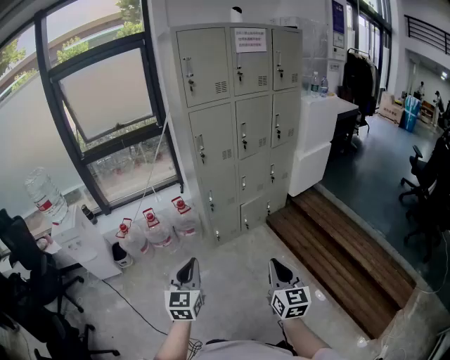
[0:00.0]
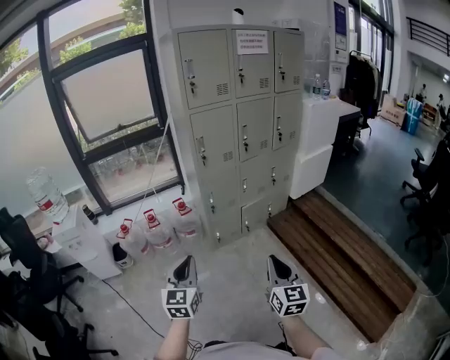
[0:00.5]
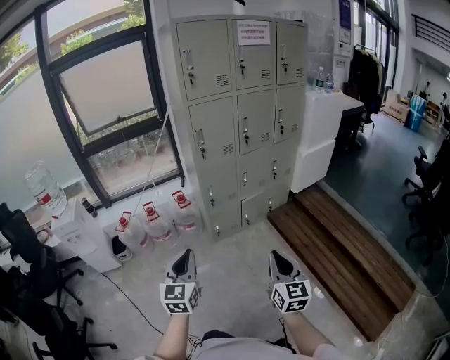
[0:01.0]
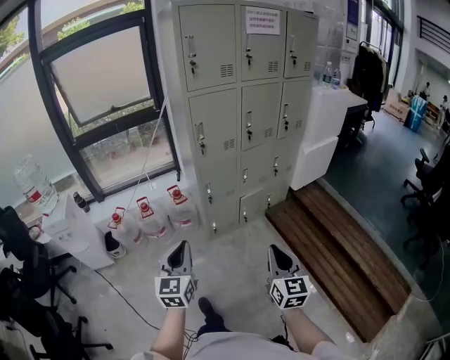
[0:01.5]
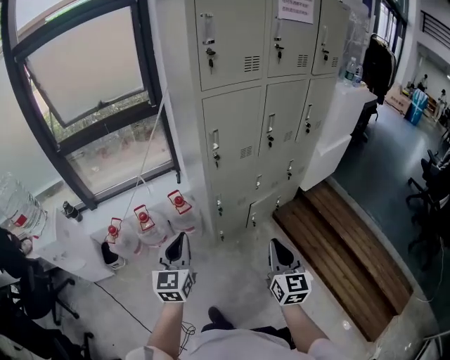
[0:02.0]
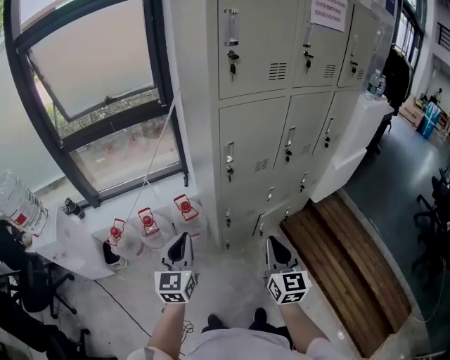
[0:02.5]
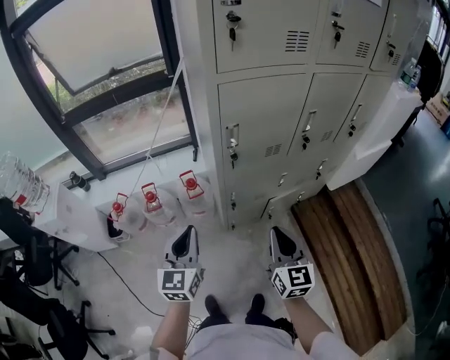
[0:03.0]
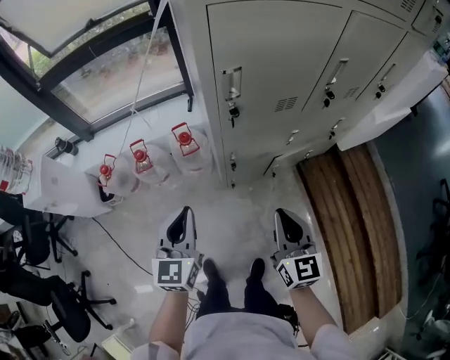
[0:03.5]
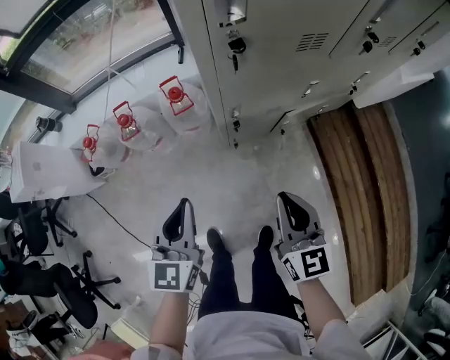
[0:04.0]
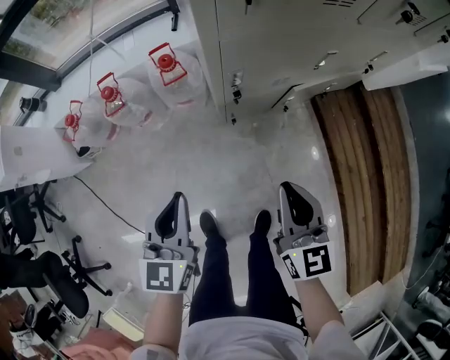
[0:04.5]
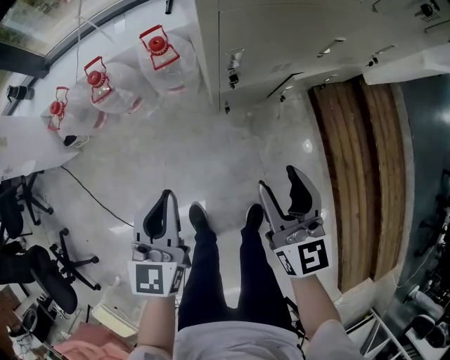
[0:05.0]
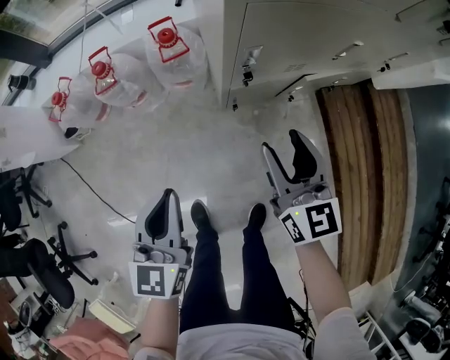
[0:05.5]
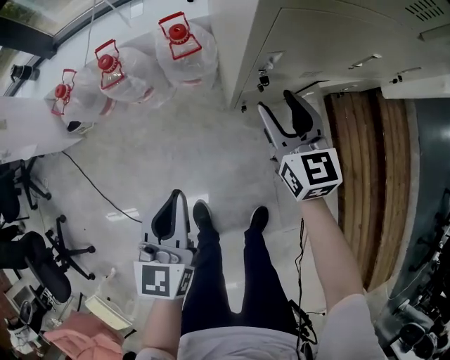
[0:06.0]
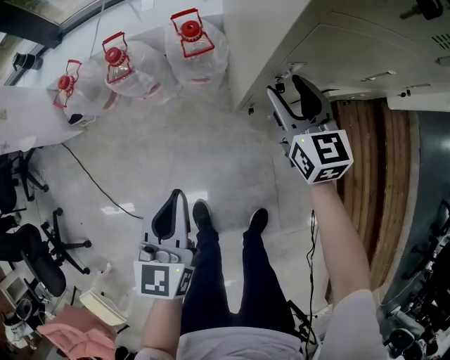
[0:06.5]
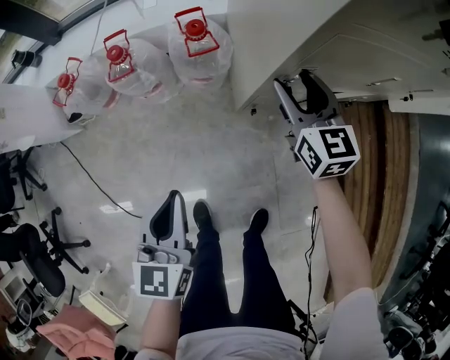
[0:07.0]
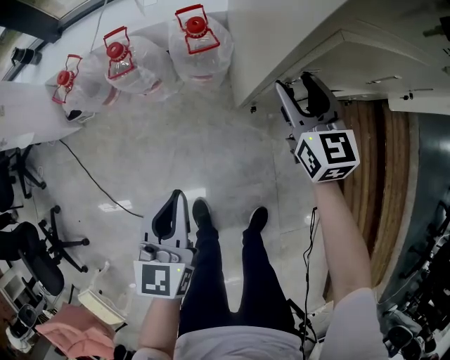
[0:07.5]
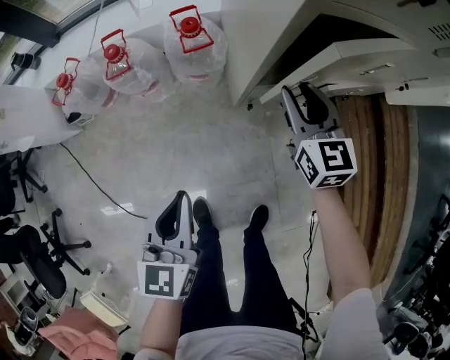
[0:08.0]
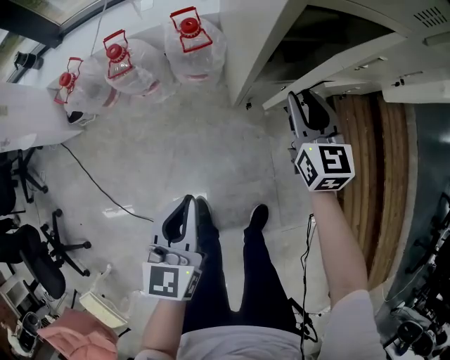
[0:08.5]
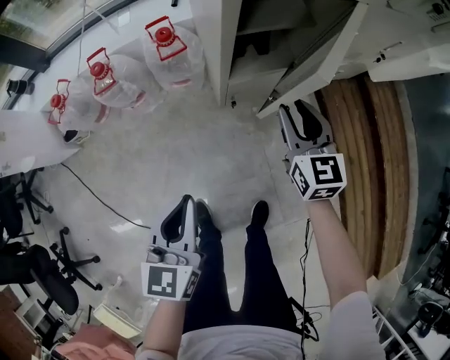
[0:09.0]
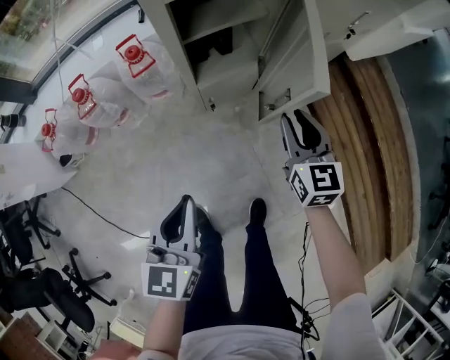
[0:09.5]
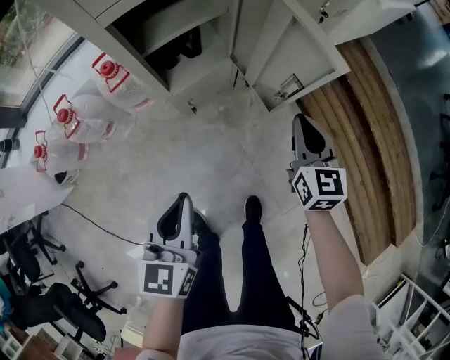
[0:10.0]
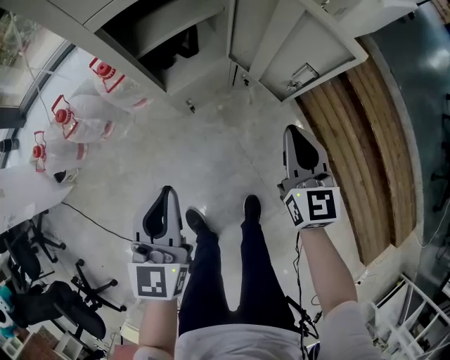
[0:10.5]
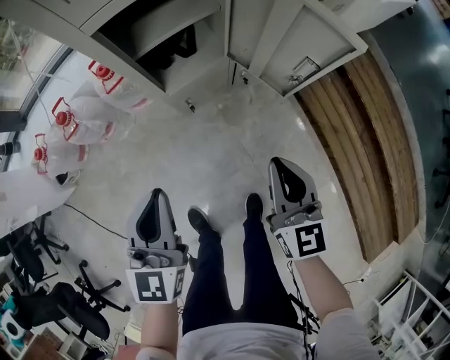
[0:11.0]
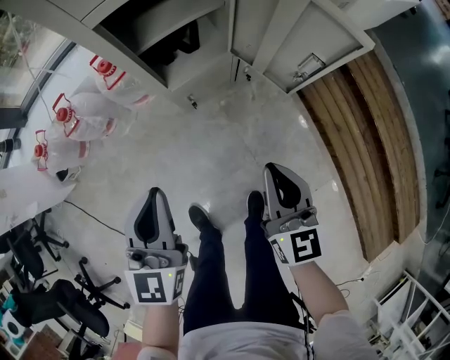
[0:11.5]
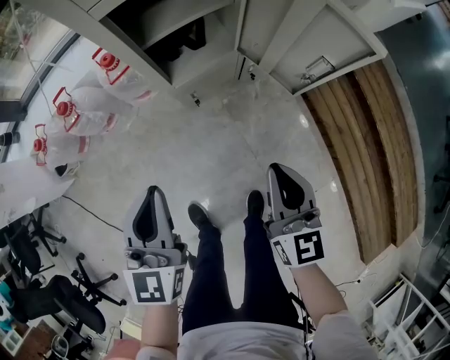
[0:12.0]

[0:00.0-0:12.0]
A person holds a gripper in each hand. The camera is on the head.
0:00.0 to 0:02.0: Both grippers move forward, about 30 cm.
0:02.0 to 0:04.0: Both grippers travel together downward and forward, about 30 cm. The right gripper turns by about 20 degrees.
0:04.0 to 0:06.0: The right gripper moves forward, downward and to the left, roughly 25 cm, and opens up; the left gripper travels downward by roughly 15 cm.
0:08.0 to 0:10.0: The left gripper heads to the right, covering approximately 20 cm, and turns by roughly 20 degrees, while the right gripper heads to the right and backward, covering about 30 cm, rotates roughly 30 degrees, and closes.
0:10.0 to 0:12.0: The right gripper moves backward and to the left, roughly 15 cm; the left gripper ends up some 5 cm from where it was.

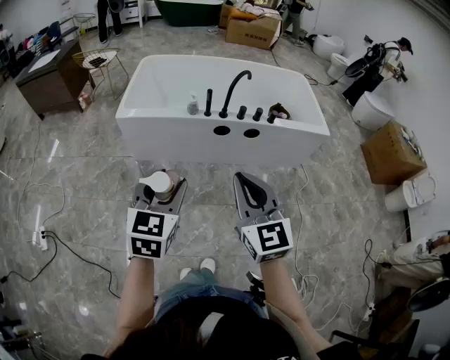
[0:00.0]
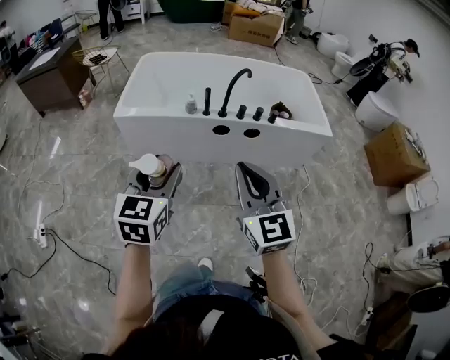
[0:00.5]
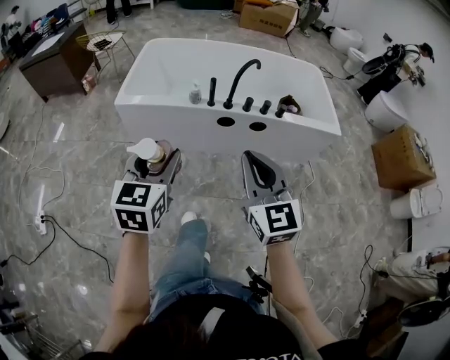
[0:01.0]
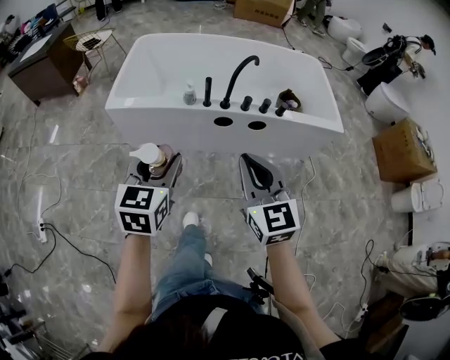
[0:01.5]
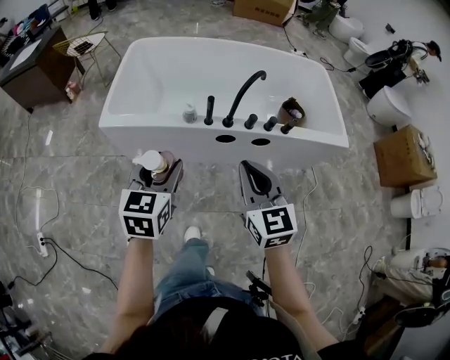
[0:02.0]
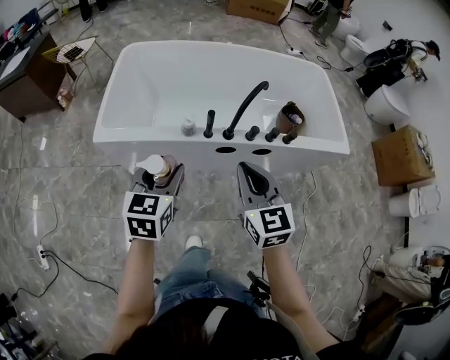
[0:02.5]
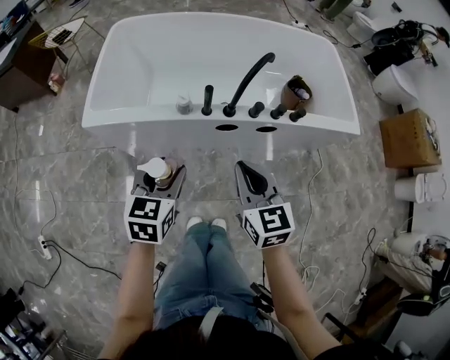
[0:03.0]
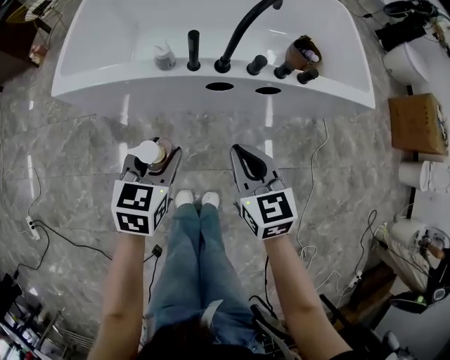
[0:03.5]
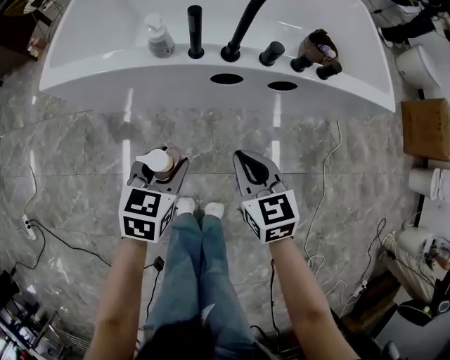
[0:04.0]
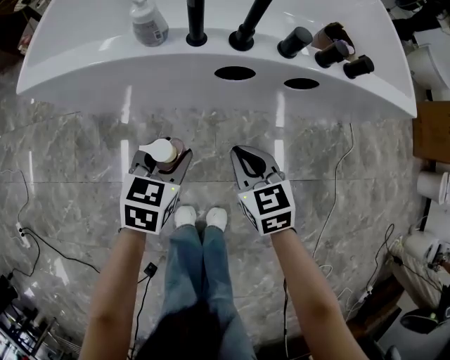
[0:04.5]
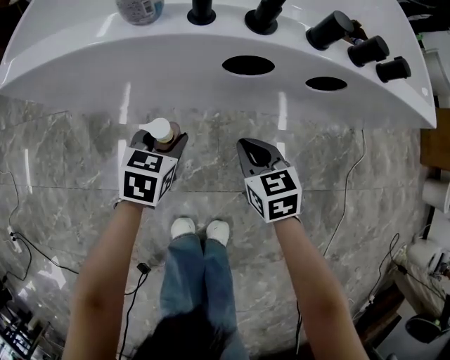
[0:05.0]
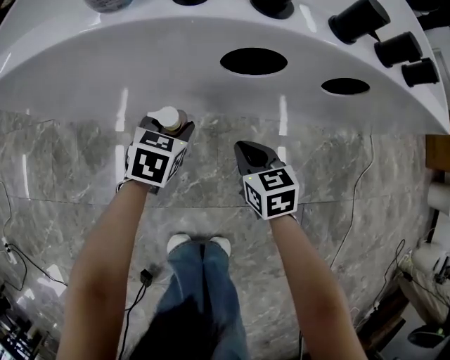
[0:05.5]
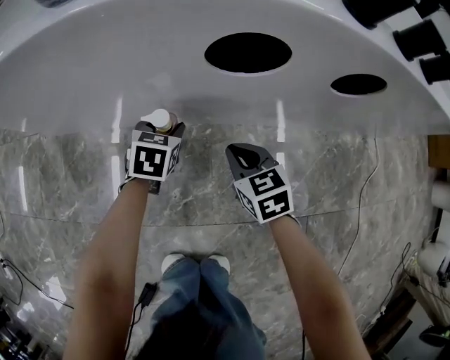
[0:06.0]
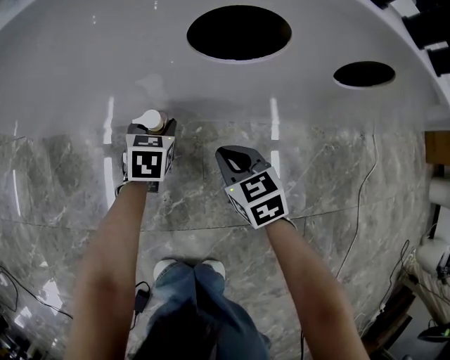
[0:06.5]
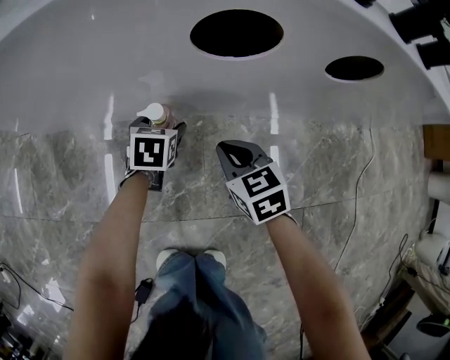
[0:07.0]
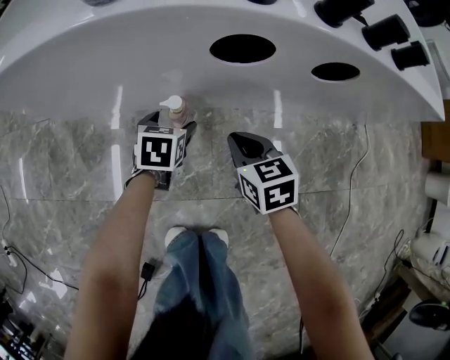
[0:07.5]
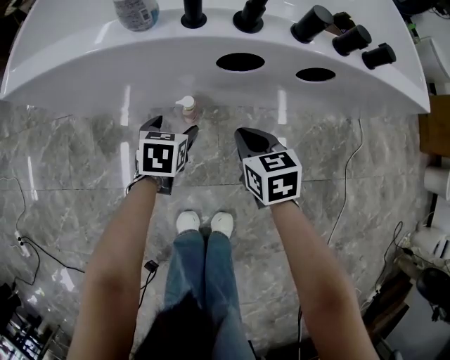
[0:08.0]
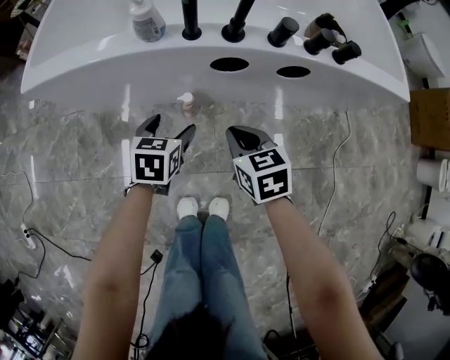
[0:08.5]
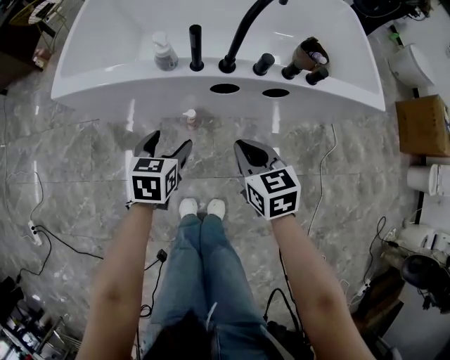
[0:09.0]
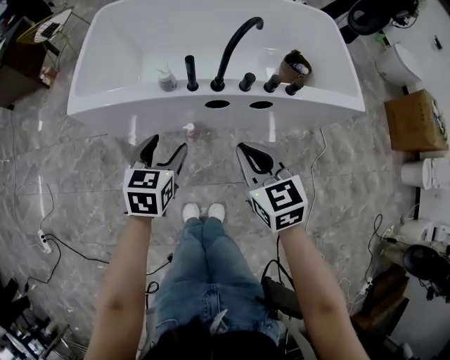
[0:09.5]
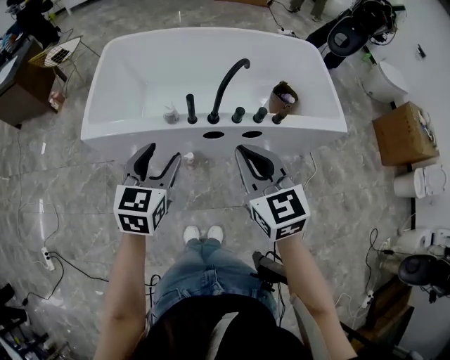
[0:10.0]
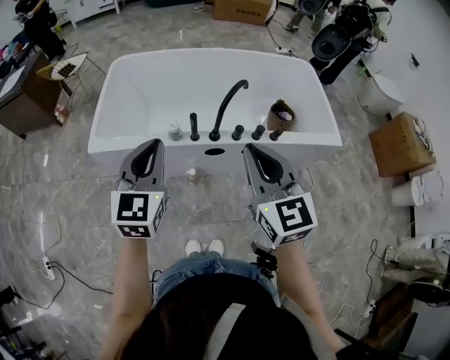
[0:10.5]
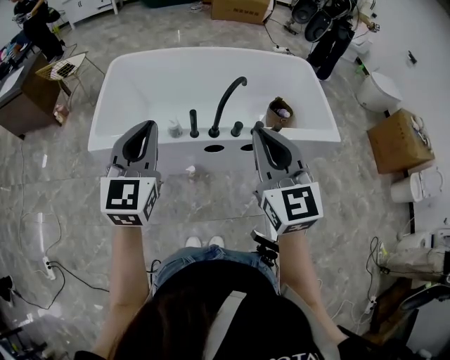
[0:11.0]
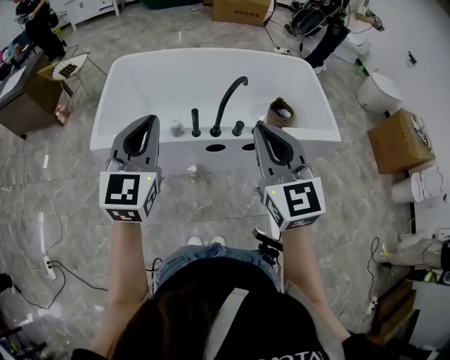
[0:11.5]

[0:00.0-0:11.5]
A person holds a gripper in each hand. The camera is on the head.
0:00.0 to 0:02.0: Both grippers travel together forward, roughly 30 cm.
0:02.0 to 0:04.0: Both grippers travel together downward, about 35 cm. The left gripper turns by some 20 degrees, while the right gripper rotates about 20 degrees.
0:04.0 to 0:06.0: The right gripper heads downward, covering approximately 40 cm, while the left gripper goes roughly 50 cm downward and forward.
0:06.0 to 0:07.5: The left gripper heads upward and backward, covering roughly 10 cm, and opens up, while the right gripper travels upward by about 10 cm.
0:07.5 to 0:09.5: Both grippers move upward, about 50 cm.
0:09.5 to 0:11.5: The two grippers go some 30 cm upward. The right gripper rotates roughly 30 degrees; the left gripper angles its fingers upward, by some 30 degrees, and closes.

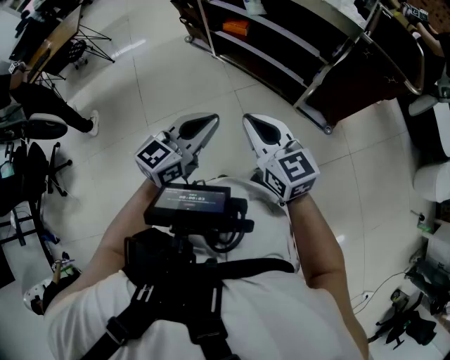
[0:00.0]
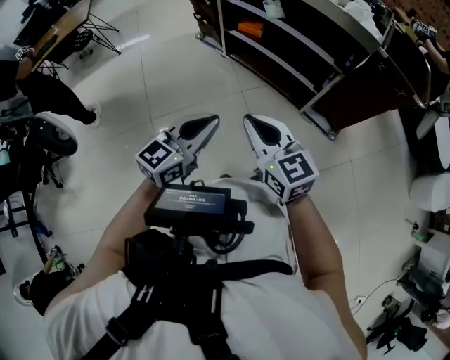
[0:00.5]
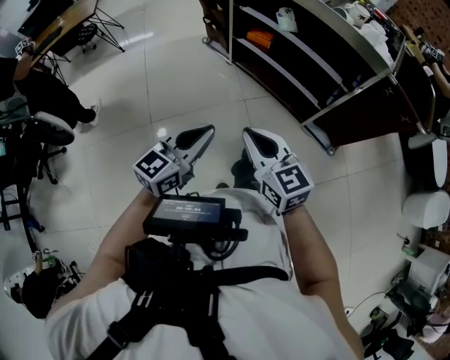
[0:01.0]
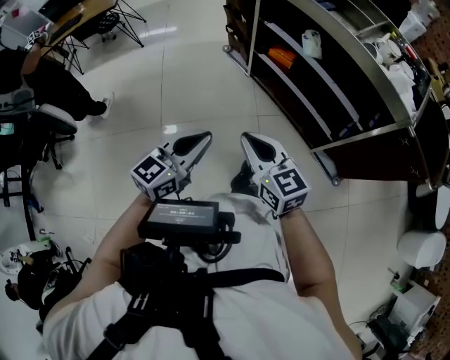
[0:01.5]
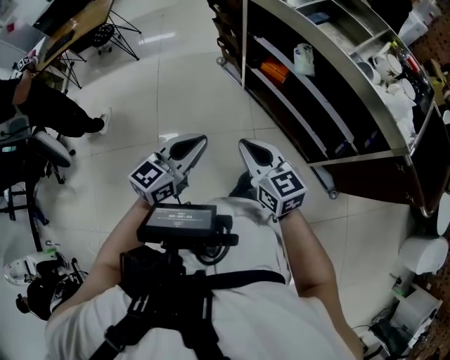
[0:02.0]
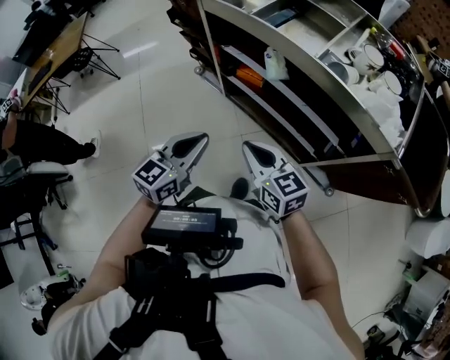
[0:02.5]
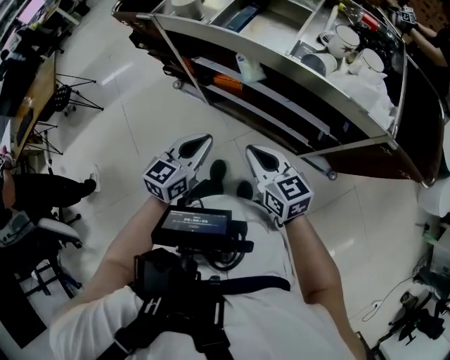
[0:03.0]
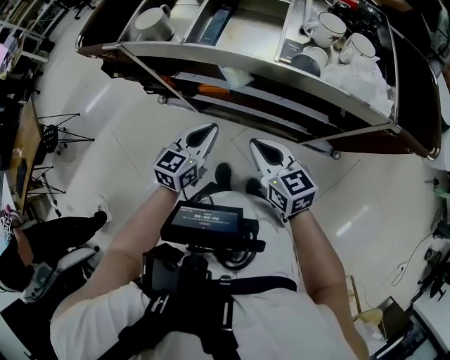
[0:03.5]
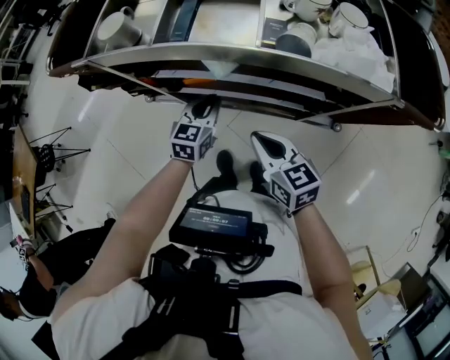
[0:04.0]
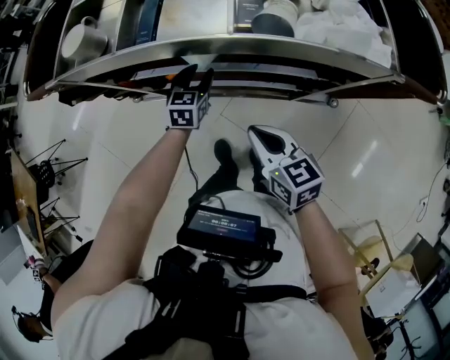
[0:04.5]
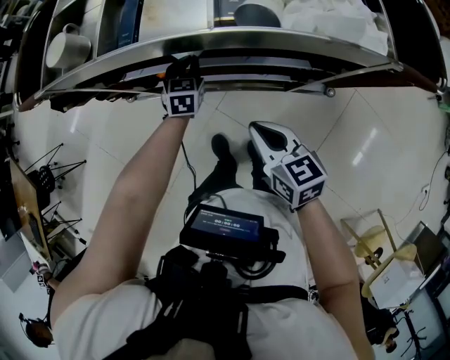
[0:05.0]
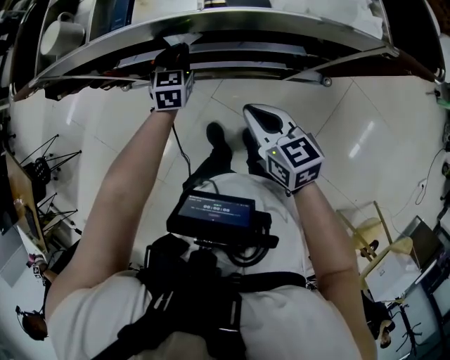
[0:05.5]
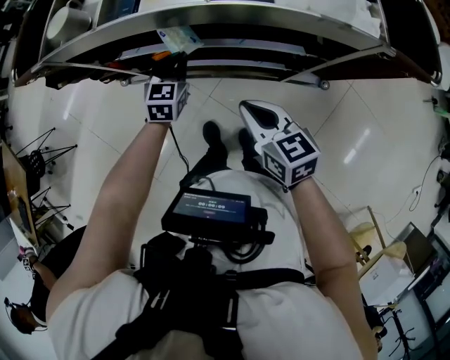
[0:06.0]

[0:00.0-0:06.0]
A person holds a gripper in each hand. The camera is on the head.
0:00.0 to 0:02.0: Both grippers move forward and to the left, roughly 25 cm.
0:02.0 to 0:04.0: The left gripper shifts by some 40 cm, and changes its angle by approximately 30 degrees, while the right gripper shifts by approximately 25 cm, and turns by some 40 degrees.
0:04.0 to 0:06.0: The left gripper opens, then closes again.
